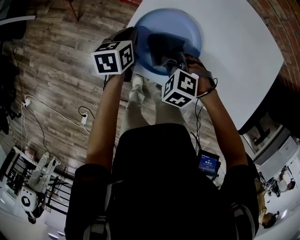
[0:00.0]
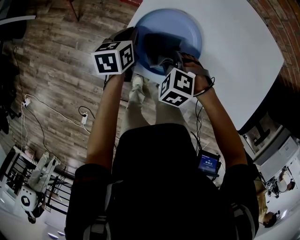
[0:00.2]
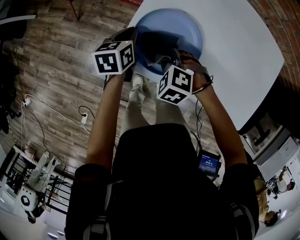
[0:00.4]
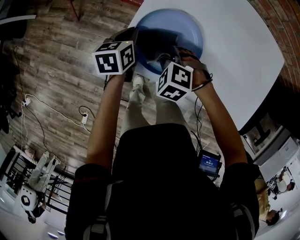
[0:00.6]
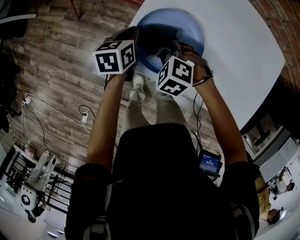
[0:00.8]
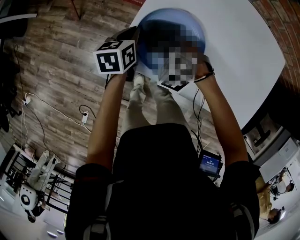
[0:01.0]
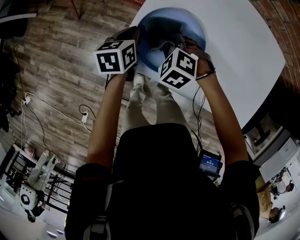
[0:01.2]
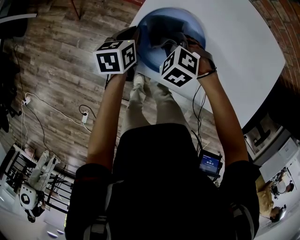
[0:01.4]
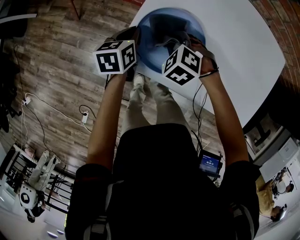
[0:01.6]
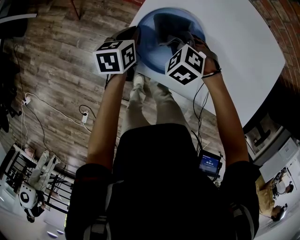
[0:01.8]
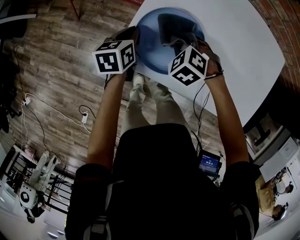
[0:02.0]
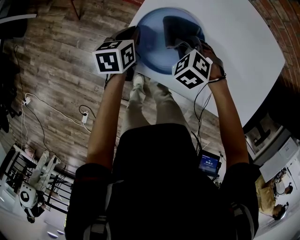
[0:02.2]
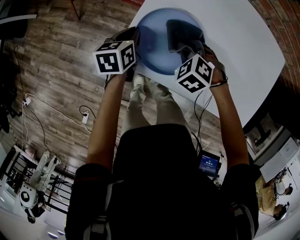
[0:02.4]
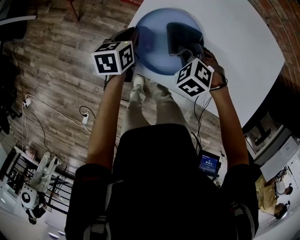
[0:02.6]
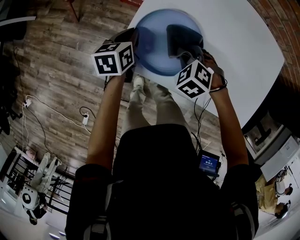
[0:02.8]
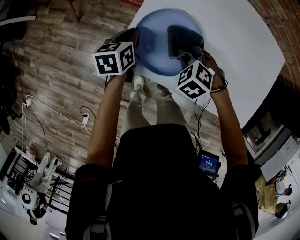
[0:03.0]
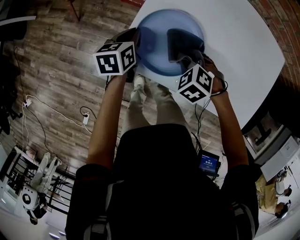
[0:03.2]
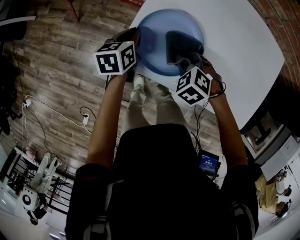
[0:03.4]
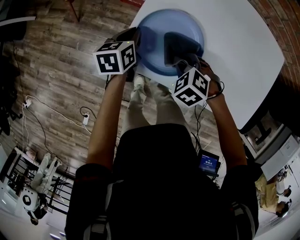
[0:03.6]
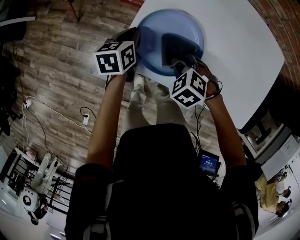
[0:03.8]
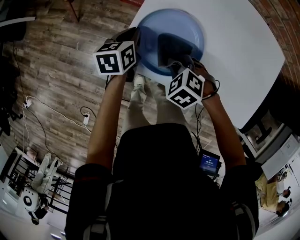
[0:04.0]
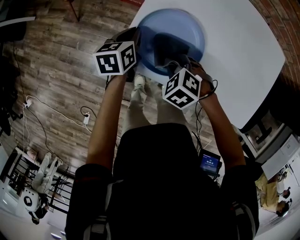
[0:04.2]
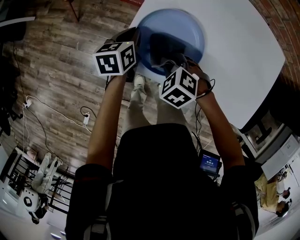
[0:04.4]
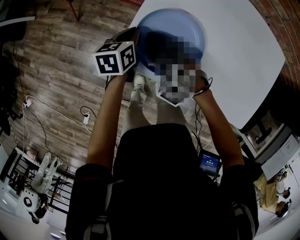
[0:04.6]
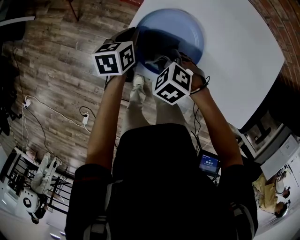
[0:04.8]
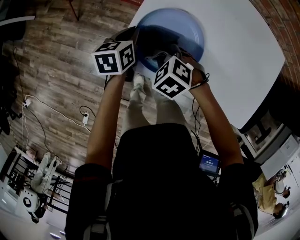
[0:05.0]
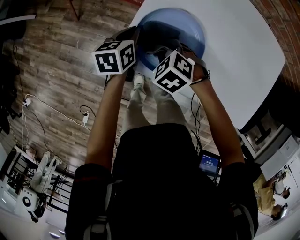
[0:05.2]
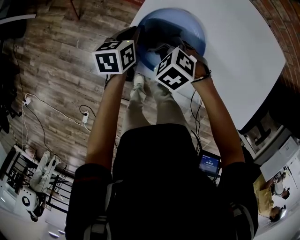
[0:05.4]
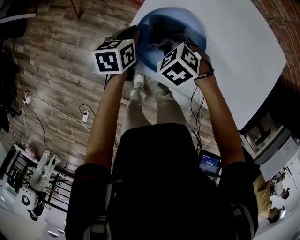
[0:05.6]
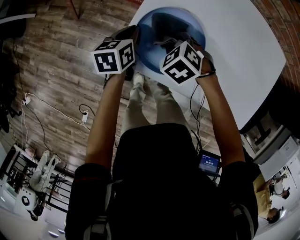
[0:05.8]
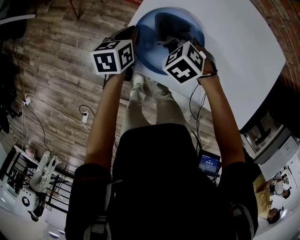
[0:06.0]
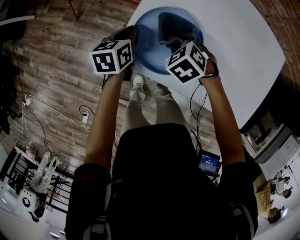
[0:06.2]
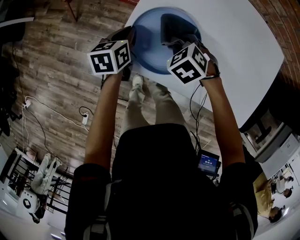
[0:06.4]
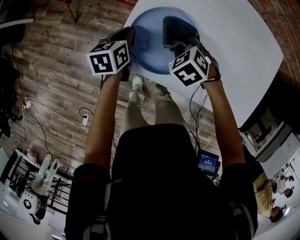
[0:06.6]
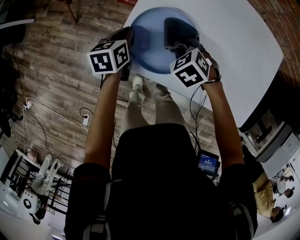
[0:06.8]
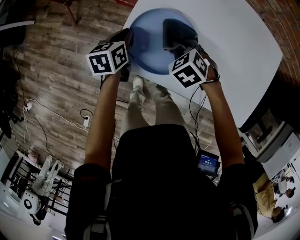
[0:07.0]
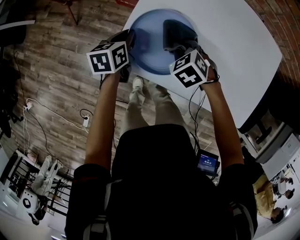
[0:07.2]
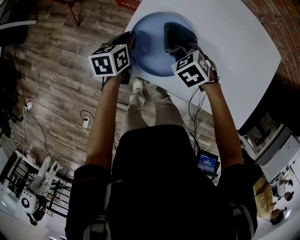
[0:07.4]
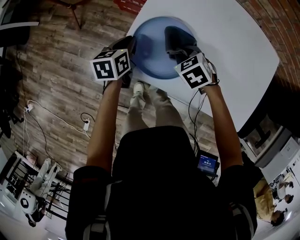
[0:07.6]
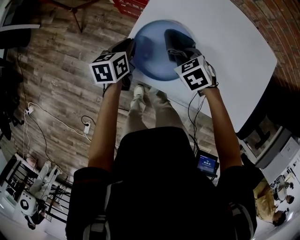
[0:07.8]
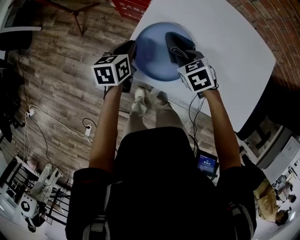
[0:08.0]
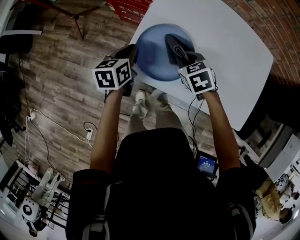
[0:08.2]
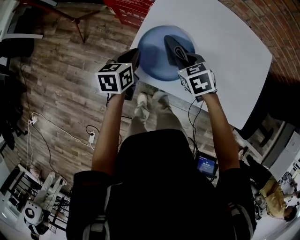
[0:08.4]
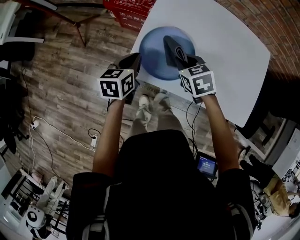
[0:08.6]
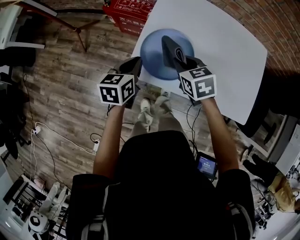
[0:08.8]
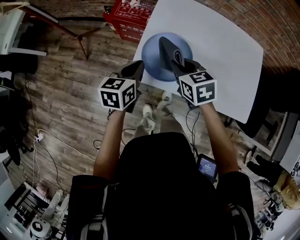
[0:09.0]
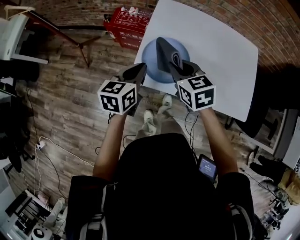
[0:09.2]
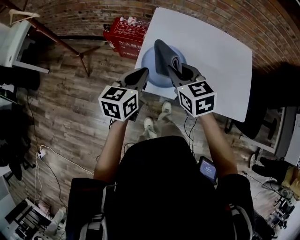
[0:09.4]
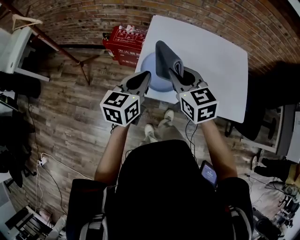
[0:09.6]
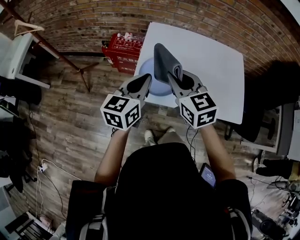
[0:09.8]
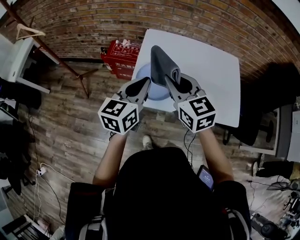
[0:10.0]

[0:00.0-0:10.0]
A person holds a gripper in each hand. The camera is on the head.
0:00.0 to 0:01.4: The right gripper is displaced forward by roughly 5 cm.
0:01.4 to 0:02.8: The right gripper moves to the right, some 5 cm.
0:02.8 to 0:04.2: The right gripper moves about 5 cm.
0:04.2 to 0:05.8: The right gripper moves forward, some 10 cm.
0:05.8 to 0:07.2: The right gripper goes roughly 5 cm to the right.
0:07.2 to 0:08.6: The right gripper moves upward, about 10 cm, and changes its angle by roughly 30 degrees. The left gripper goes some 10 cm upward and backward.
0:08.6 to 0:10.0: Both grippers move upward, some 25 cm. The left gripper rotates roughly 30 degrees, while the right gripper tilts its fingers about 40 degrees upward.

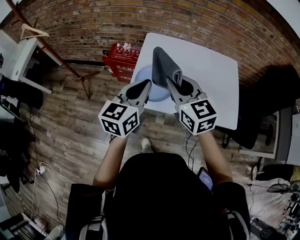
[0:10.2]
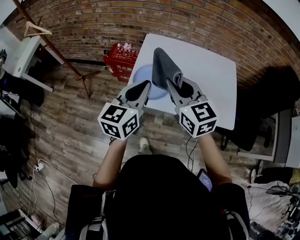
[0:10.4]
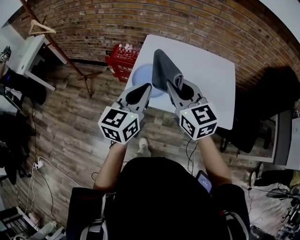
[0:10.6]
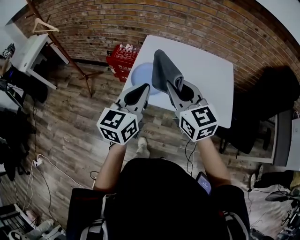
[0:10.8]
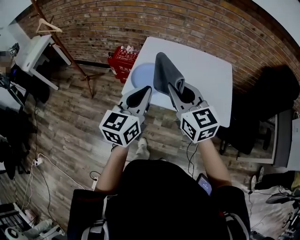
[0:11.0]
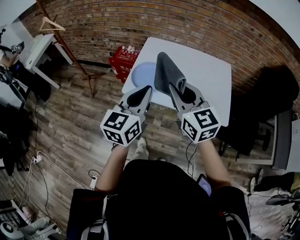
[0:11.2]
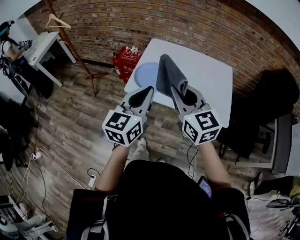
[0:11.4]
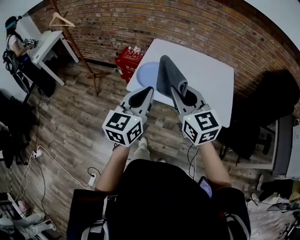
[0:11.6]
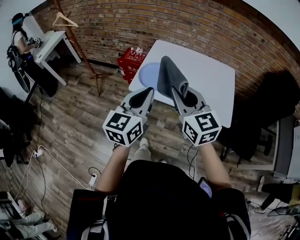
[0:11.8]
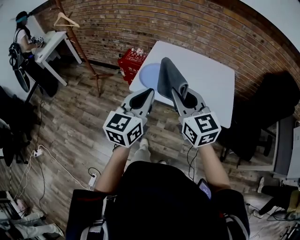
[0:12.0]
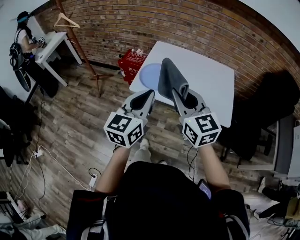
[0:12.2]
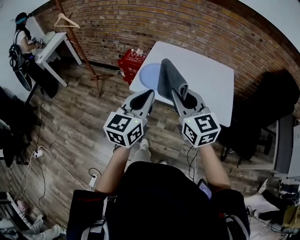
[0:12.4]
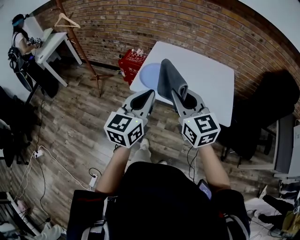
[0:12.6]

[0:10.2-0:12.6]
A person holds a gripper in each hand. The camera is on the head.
0:10.2 to 0:11.4: The grippers both shift backward and to the right by approximately 20 cm.
0:11.4 to 0:12.6: The left gripper moves roughly 5 cm, while the right gripper changes place by approximately 5 cm.

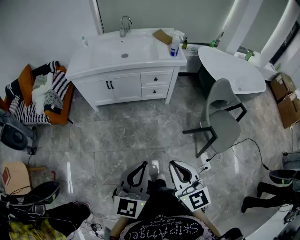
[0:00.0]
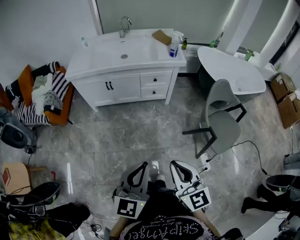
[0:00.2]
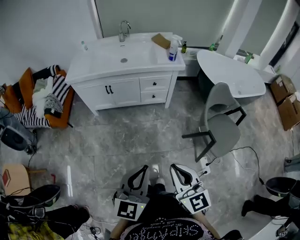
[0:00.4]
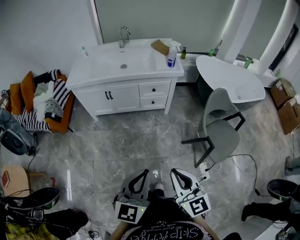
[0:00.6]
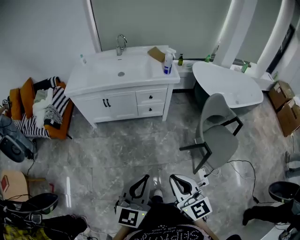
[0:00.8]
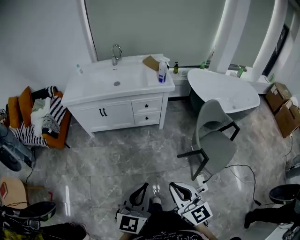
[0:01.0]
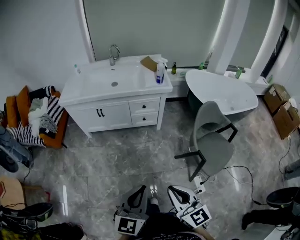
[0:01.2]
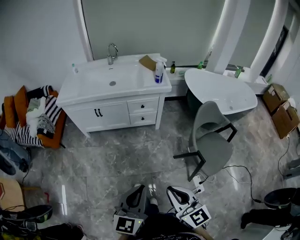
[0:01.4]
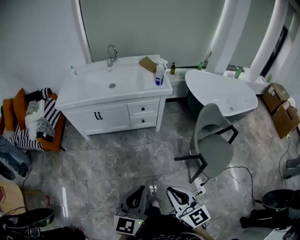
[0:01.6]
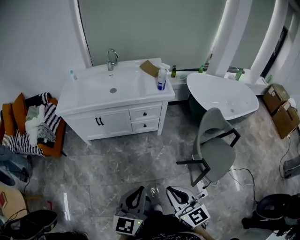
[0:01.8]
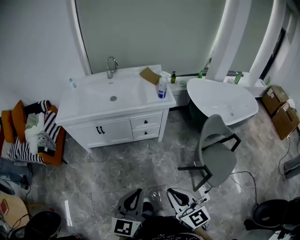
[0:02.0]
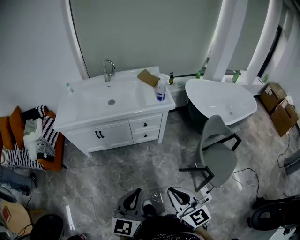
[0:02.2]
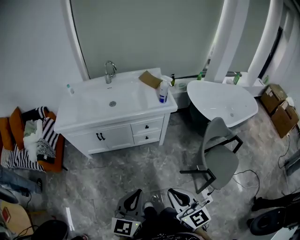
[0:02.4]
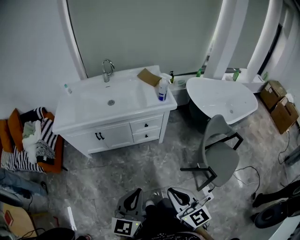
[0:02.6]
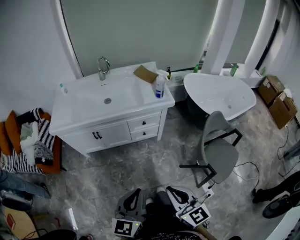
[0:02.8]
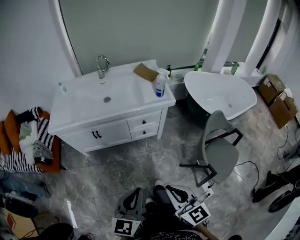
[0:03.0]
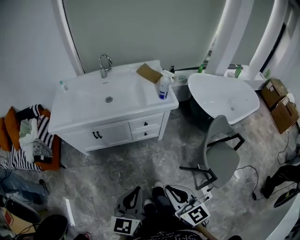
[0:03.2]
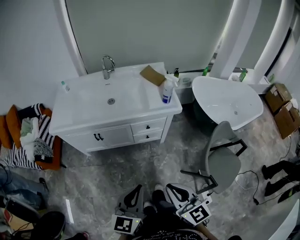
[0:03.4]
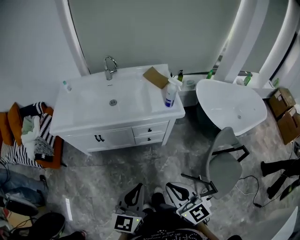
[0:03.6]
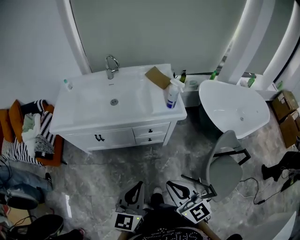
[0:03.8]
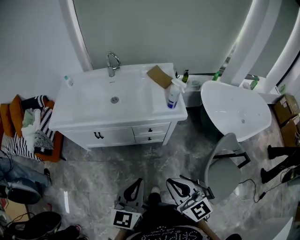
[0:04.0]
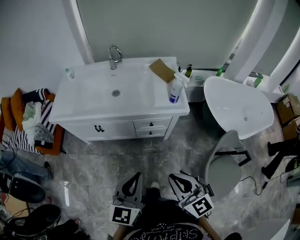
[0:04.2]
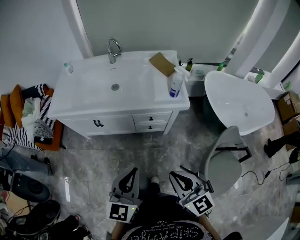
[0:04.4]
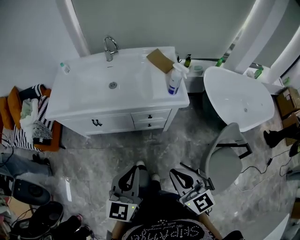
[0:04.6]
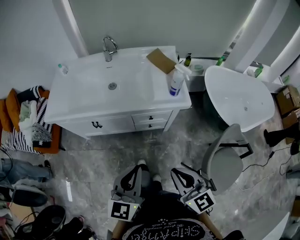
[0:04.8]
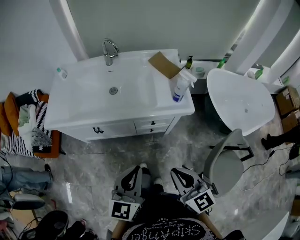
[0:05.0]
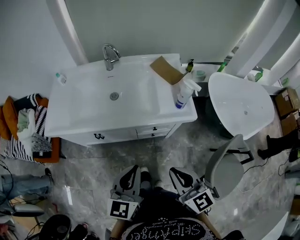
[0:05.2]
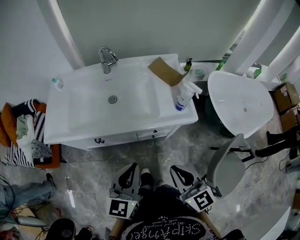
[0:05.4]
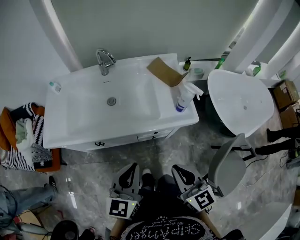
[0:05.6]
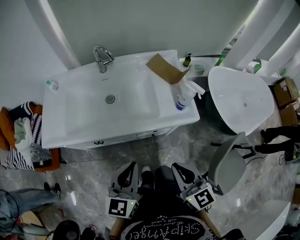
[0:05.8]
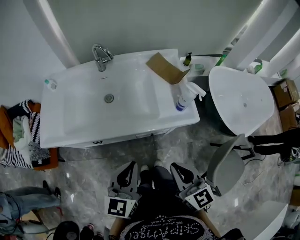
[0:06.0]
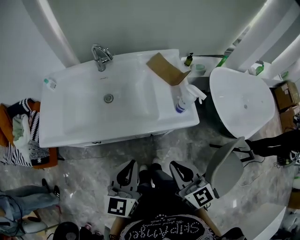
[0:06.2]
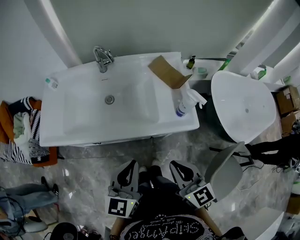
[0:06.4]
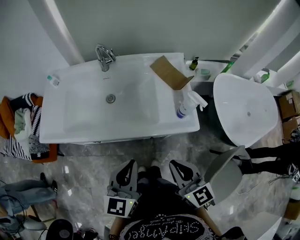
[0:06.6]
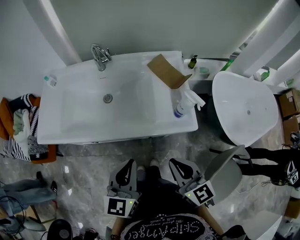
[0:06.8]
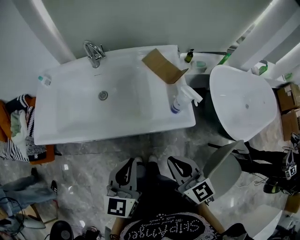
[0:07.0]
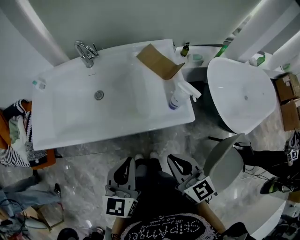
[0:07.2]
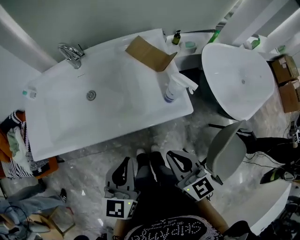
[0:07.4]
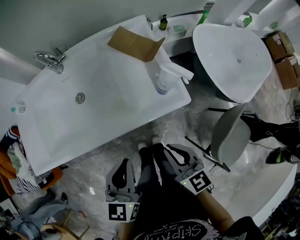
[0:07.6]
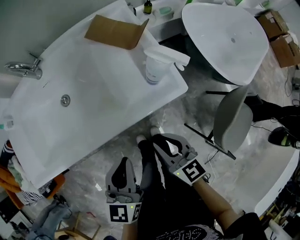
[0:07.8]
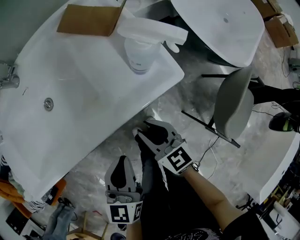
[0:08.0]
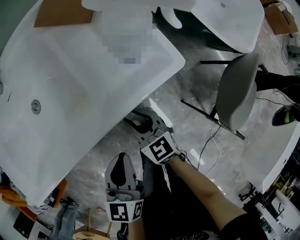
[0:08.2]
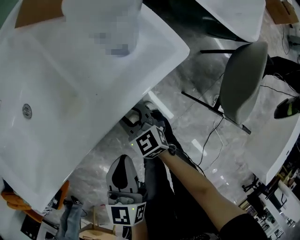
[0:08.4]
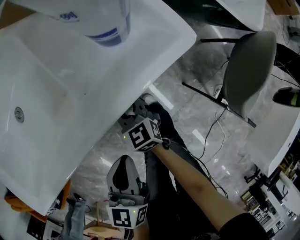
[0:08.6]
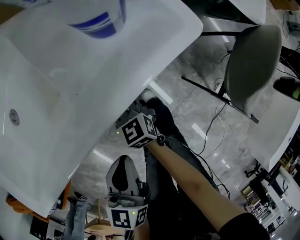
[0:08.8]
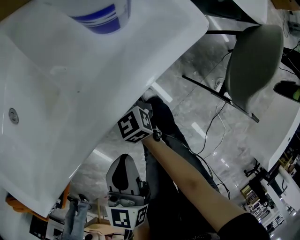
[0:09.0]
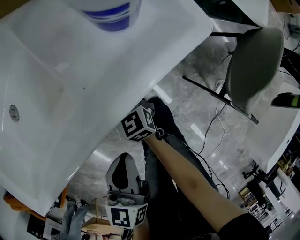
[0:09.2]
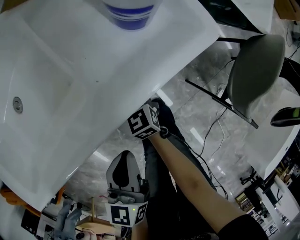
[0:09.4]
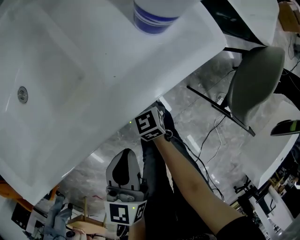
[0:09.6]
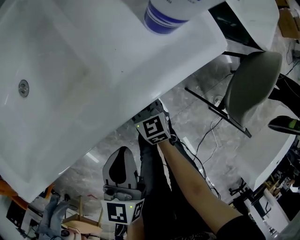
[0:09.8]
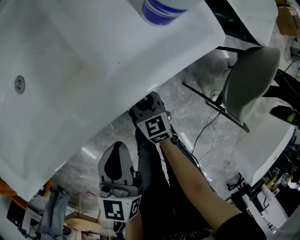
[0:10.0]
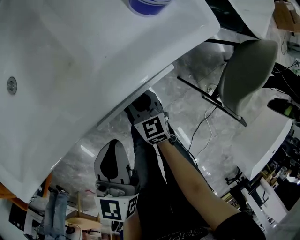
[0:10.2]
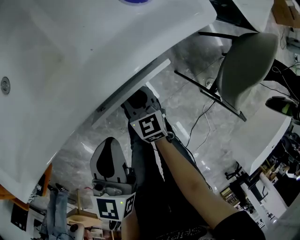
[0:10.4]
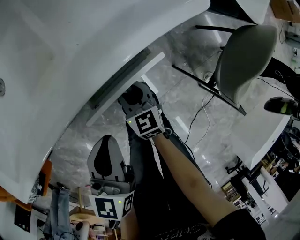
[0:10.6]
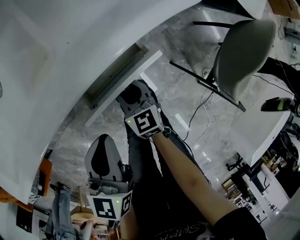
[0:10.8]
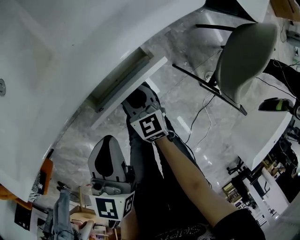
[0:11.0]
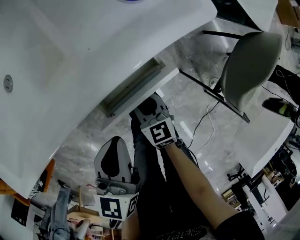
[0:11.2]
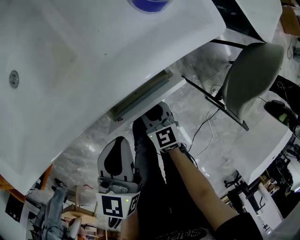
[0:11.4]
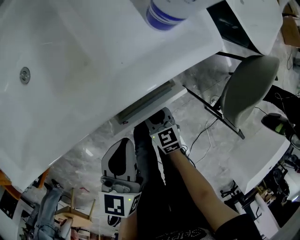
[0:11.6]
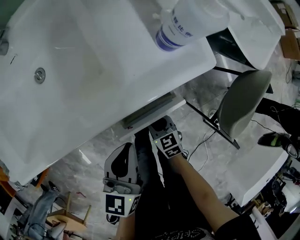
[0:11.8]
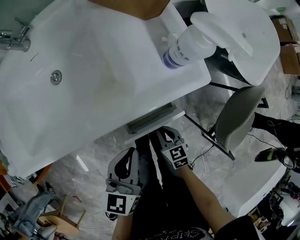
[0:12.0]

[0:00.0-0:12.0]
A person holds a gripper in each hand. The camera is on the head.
0:00.0 to 0:01.6: Both grippers travel together to the right, roughly 5 cm.
0:01.6 to 0:03.0: The right gripper heads forward, covering approximately 15 cm, while the left gripper is displaced forward and to the left by approximately 15 cm.
0:03.0 to 0:04.4: The left gripper shifts some 15 cm forward; the right gripper moves forward and to the right, some 15 cm.
0:04.4 to 0:06.0: Both grippers travel together forward, about 20 cm.
0:06.0 to 0:07.6: The left gripper is displaced forward, downward and to the right by some 10 cm, while the right gripper shifts some 15 cm downward, forward and to the right.
0:07.6 to 0:09.0: The right gripper heads downward, covering roughly 35 cm, and opens up, while the left gripper travels downward by some 25 cm, and turns by about 20 degrees.
0:09.0 to 0:10.4: The right gripper goes roughly 10 cm backward.
0:10.4 to 0:12.0: The right gripper goes approximately 5 cm backward. The left gripper shifts some 5 cm upward.
